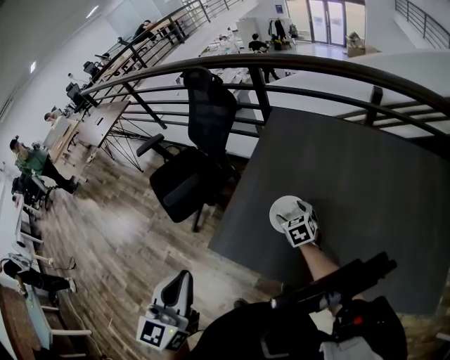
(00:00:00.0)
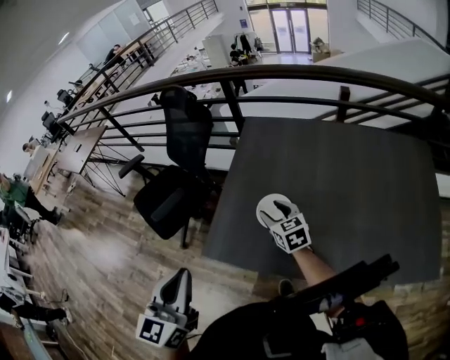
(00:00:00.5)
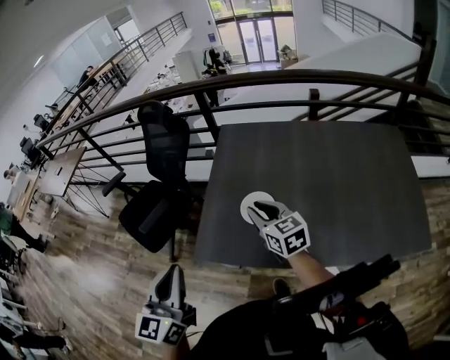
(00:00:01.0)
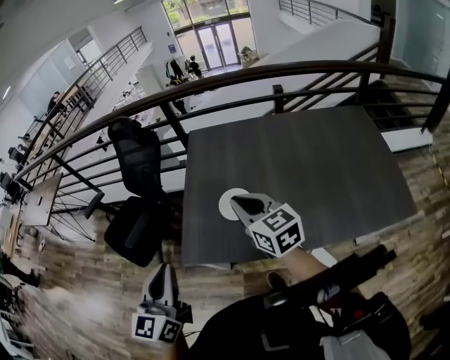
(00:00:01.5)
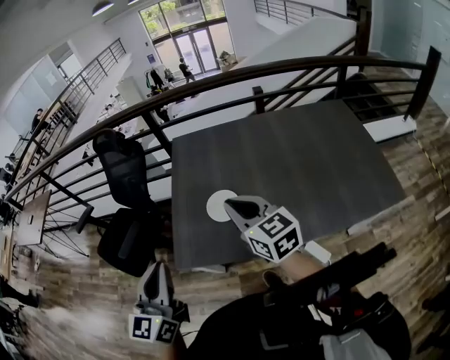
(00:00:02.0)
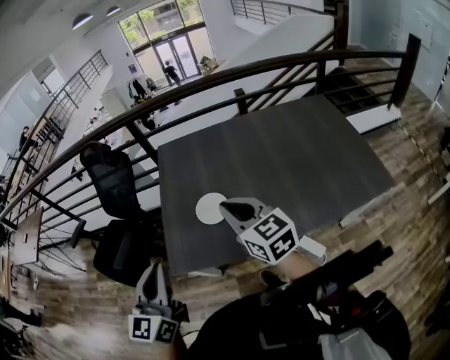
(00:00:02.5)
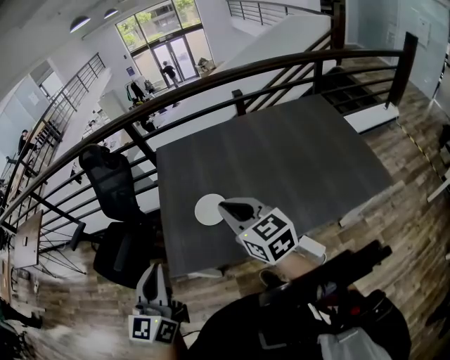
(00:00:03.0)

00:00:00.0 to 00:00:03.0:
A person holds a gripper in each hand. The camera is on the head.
00:00:00.0 to 00:00:01.5: The right gripper heads upward and backward, covering about 30 cm, points its fingers roughly 30 degrees further upward, and closes up. The left gripper ends up about 5 cm from where it was.
00:00:01.5 to 00:00:03.0: The right gripper heads backward, covering some 5 cm.

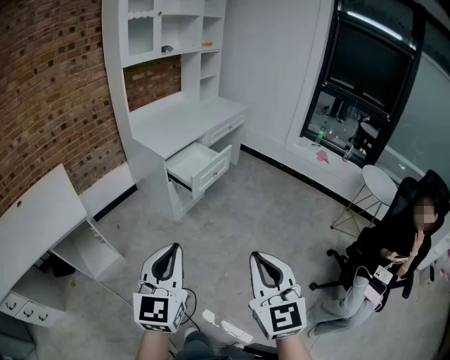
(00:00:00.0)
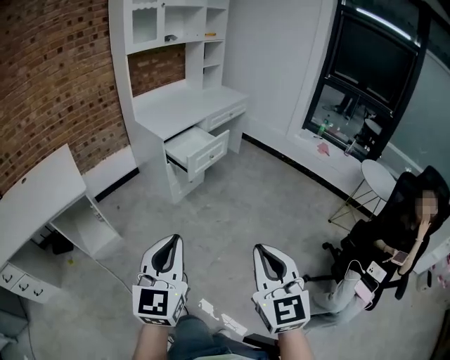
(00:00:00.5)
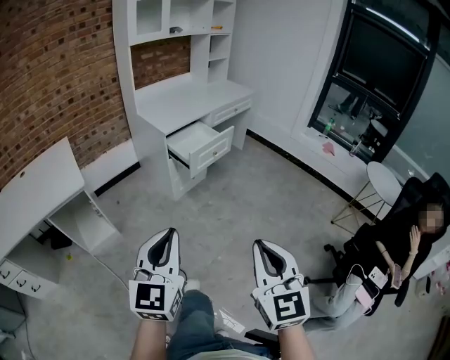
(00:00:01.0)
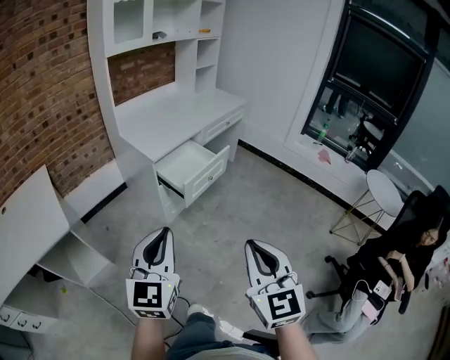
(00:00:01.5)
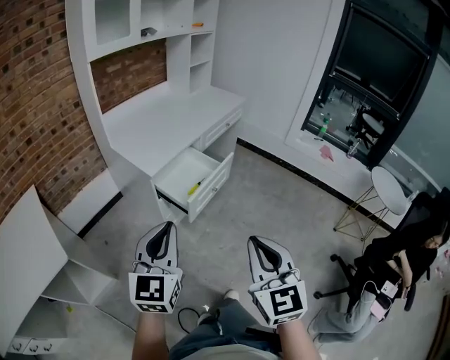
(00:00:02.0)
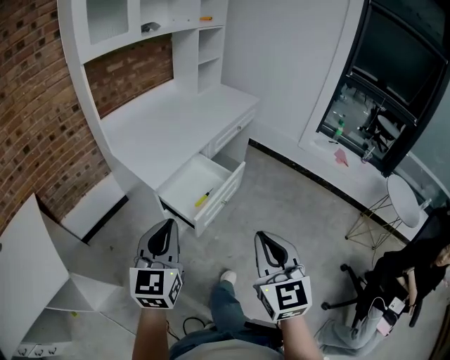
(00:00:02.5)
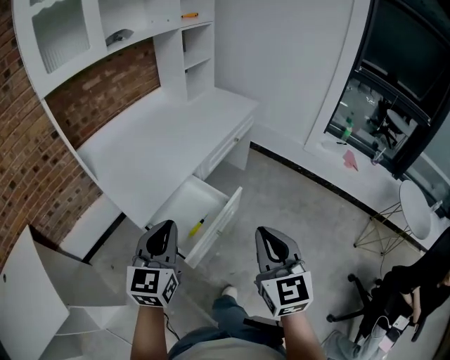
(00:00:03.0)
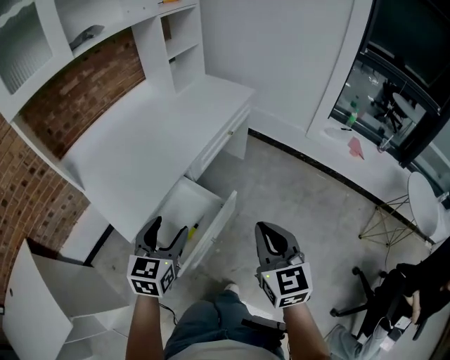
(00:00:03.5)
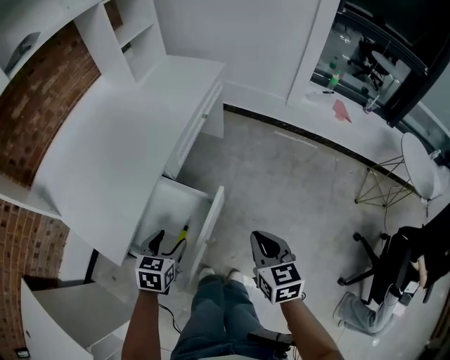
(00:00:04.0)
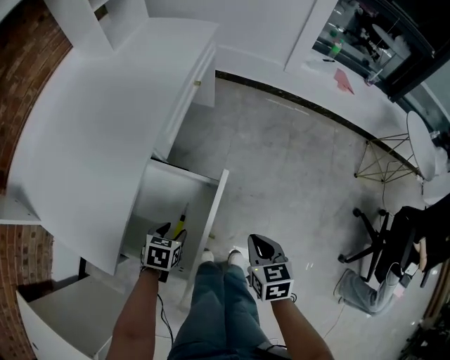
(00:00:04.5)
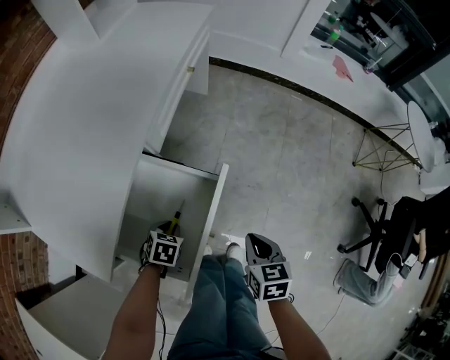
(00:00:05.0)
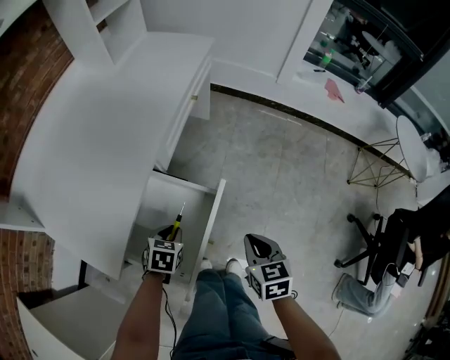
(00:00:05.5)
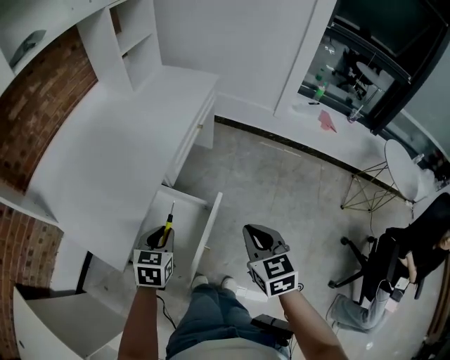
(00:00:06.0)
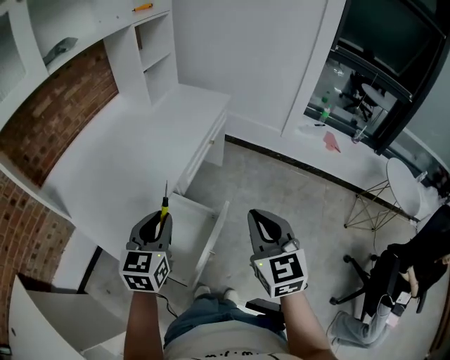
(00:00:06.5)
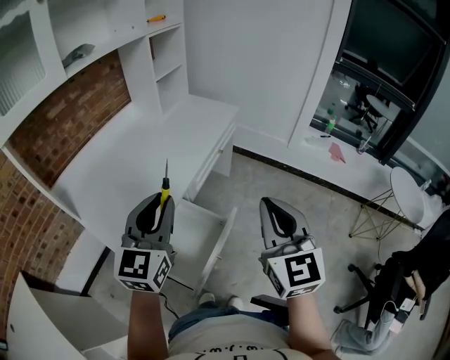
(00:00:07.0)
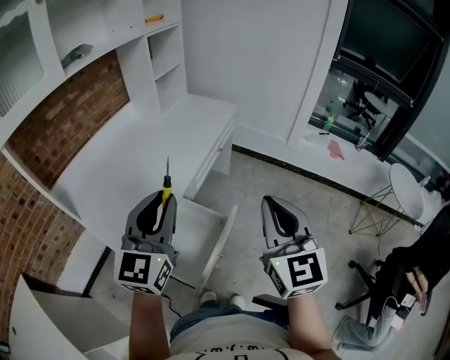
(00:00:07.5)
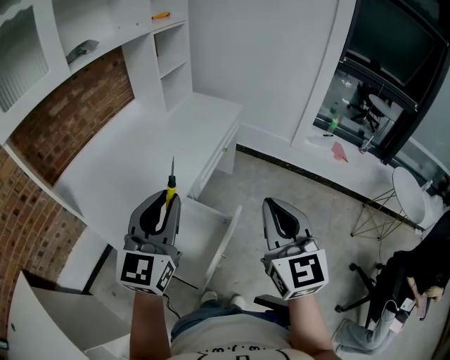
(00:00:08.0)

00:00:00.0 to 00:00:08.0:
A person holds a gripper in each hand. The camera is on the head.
00:00:00.0 to 00:00:02.0: The grippers both shift forward by some 30 cm.
00:00:02.0 to 00:00:04.0: The two grippers travel together, forward, about 50 cm. Both grippers move downward, about 25 cm. The left gripper points its fingers some 40 degrees further downward, and opens up, while the right gripper changes its angle by roughly 40 degrees.
00:00:04.0 to 00:00:06.0: The right gripper goes downward and returns, approximately 15 cm each way, while the left gripper travels downward and back again, some 20 cm each way, and closes its fingers.
00:00:06.0 to 00:00:08.0: The grippers both shift upward by about 25 cm. The left gripper tilts its fingers approximately 50 degrees upward. Meanwhile the right gripper turns by some 30 degrees.

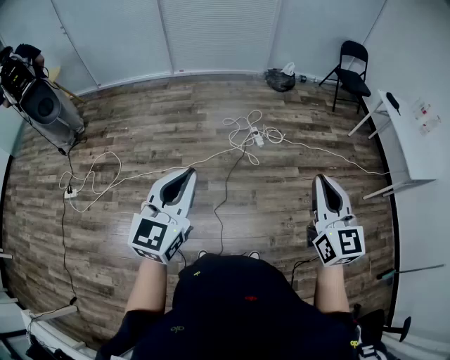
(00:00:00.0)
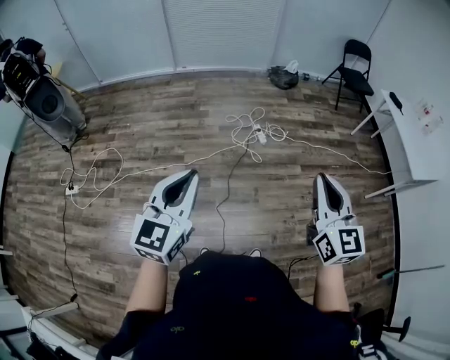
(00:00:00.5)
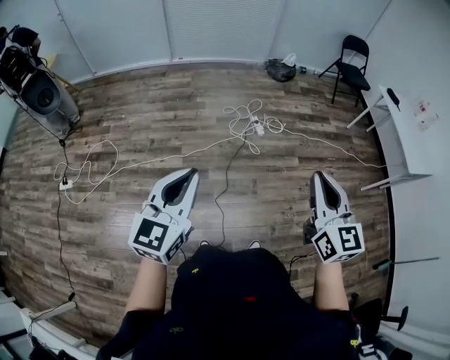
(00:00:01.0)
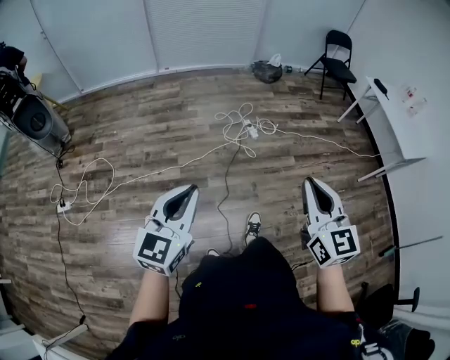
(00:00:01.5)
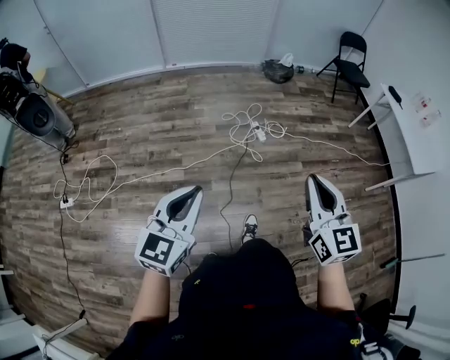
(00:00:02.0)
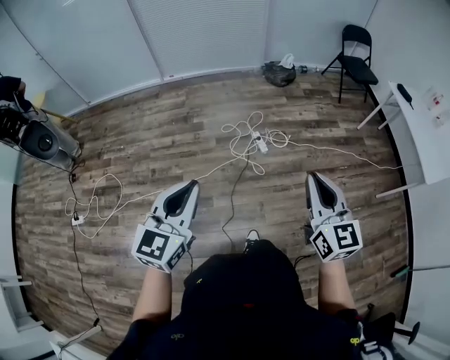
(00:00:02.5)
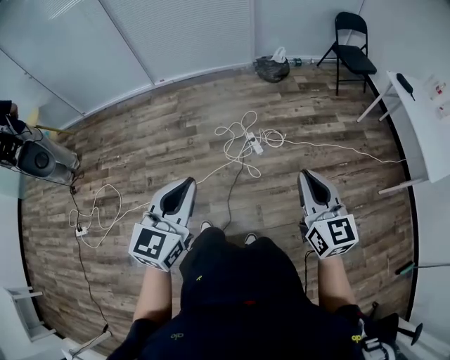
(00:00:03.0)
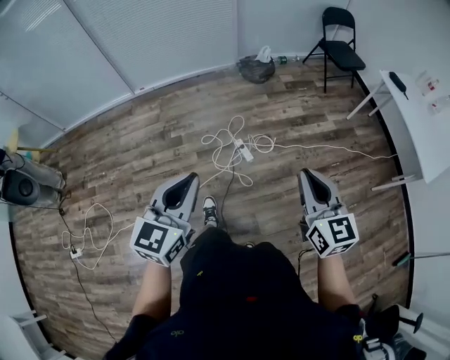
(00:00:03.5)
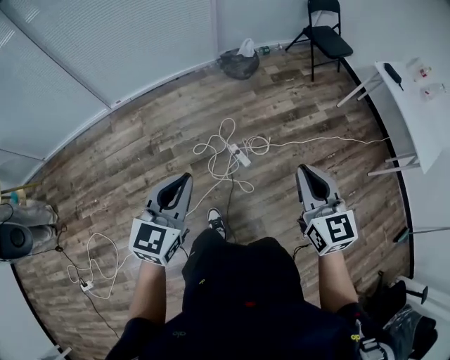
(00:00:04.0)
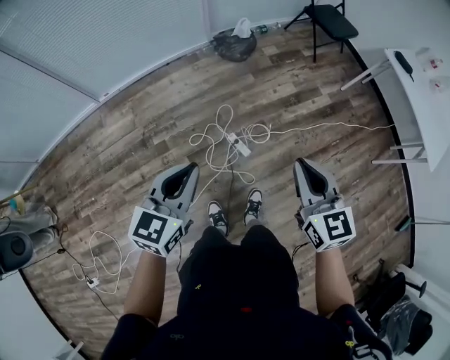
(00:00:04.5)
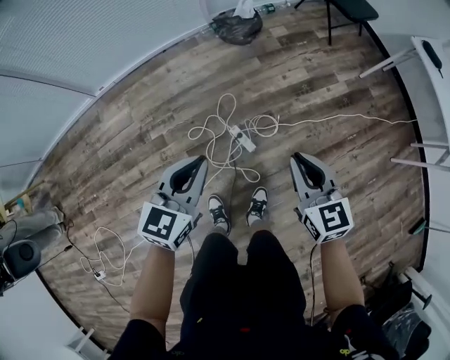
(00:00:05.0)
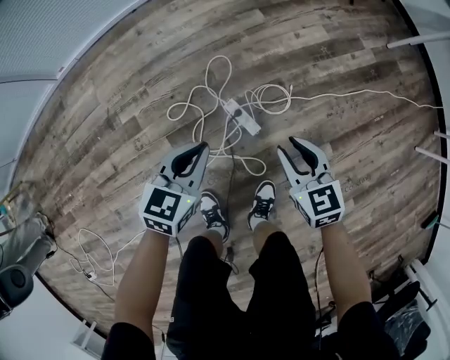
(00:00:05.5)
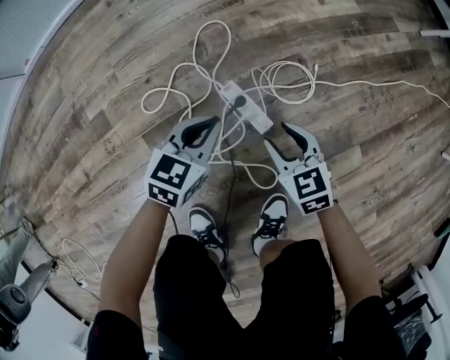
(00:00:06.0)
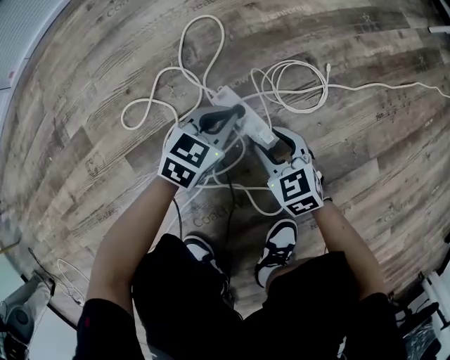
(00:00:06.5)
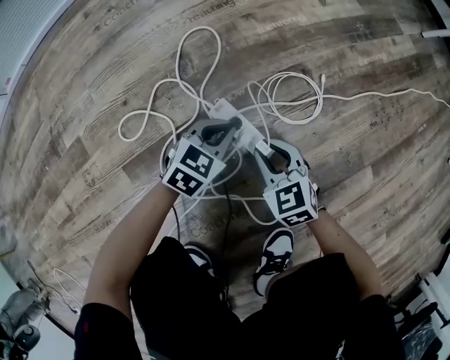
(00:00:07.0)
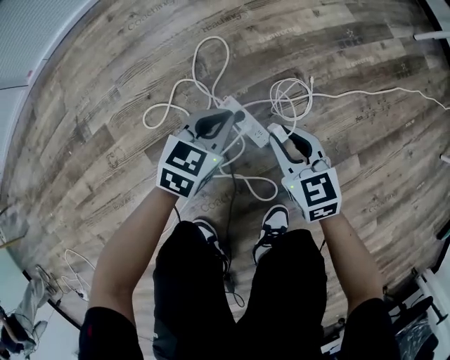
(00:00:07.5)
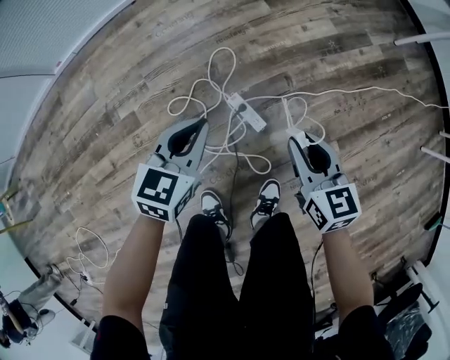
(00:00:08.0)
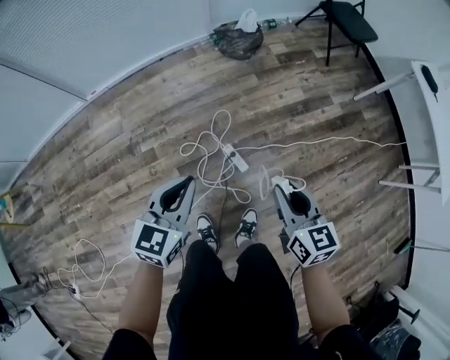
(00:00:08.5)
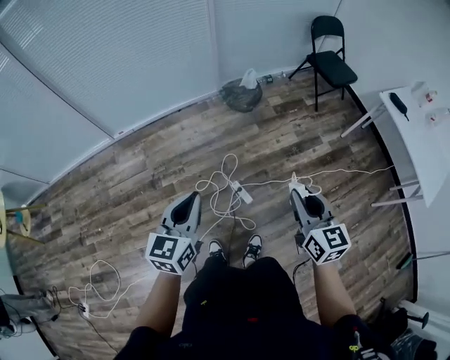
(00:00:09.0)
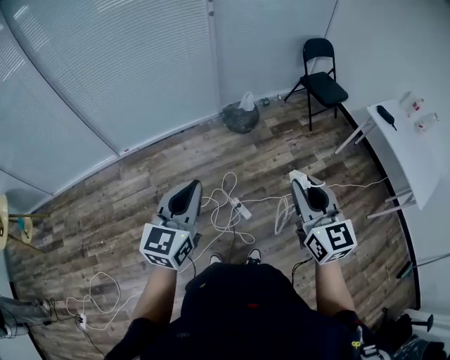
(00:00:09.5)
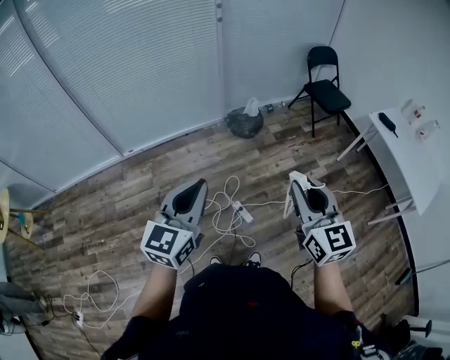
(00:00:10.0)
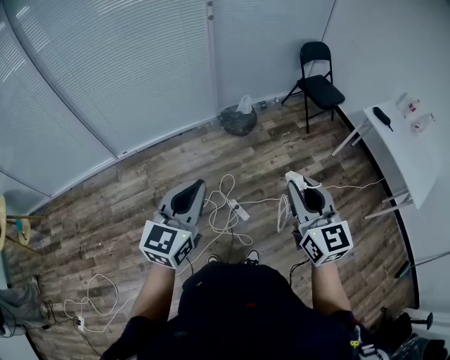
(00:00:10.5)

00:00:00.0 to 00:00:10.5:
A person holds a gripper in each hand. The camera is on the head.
00:00:00.0 to 00:00:02.0: The left gripper travels to the left and downward by roughly 10 cm. Meanwhile the right gripper travels to the left and forward by some 15 cm.
00:00:02.0 to 00:00:04.0: The pair of grippers is taken forward, roughly 60 cm.
00:00:04.0 to 00:00:06.5: The two grippers go roughly 1 m downward. The right gripper points its fingers some 30 degrees further downward, and opens its fingers; the left gripper rotates roughly 30 degrees.
00:00:06.5 to 00:00:08.5: Both grippers travel together upward, some 80 cm. The right gripper turns by roughly 30 degrees, and closes. Meanwhile the left gripper swivels roughly 30 degrees.
00:00:08.5 to 00:00:10.5: The two grippers go roughly 35 cm upward. The left gripper turns by approximately 20 degrees. Meanwhile the right gripper turns by some 30 degrees.

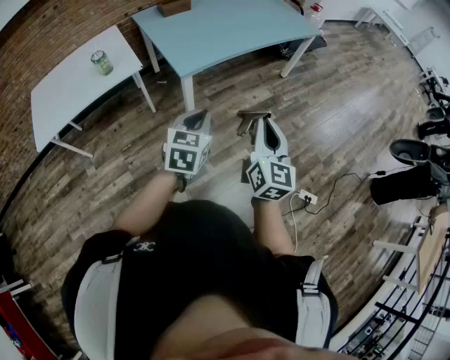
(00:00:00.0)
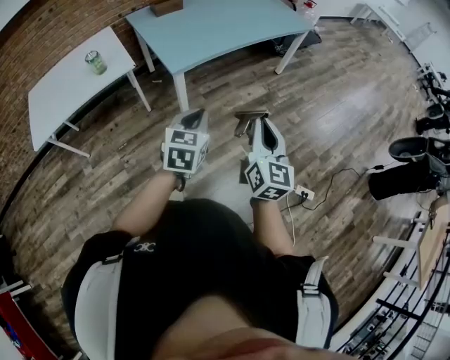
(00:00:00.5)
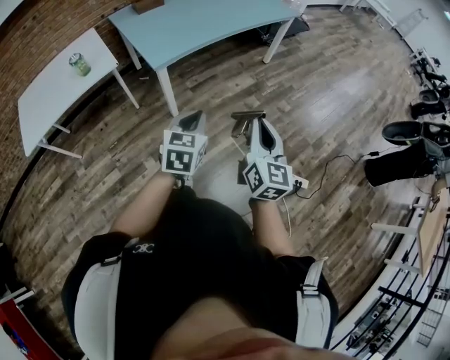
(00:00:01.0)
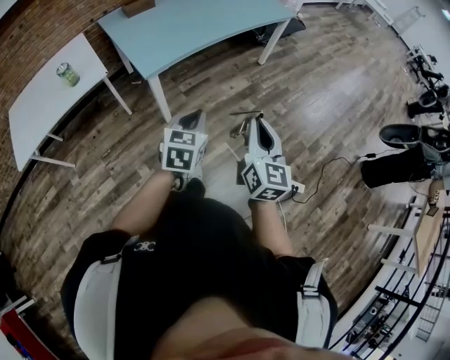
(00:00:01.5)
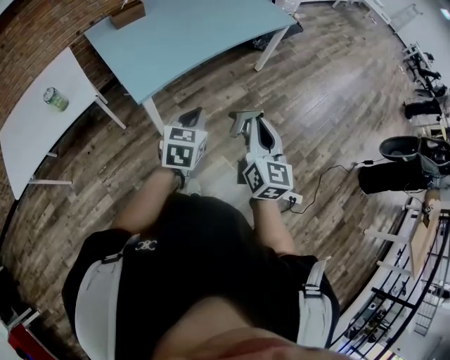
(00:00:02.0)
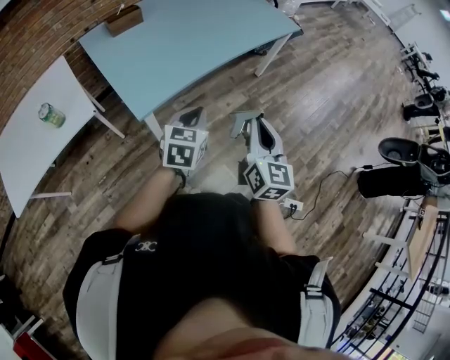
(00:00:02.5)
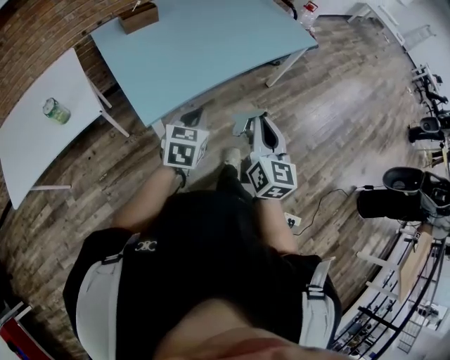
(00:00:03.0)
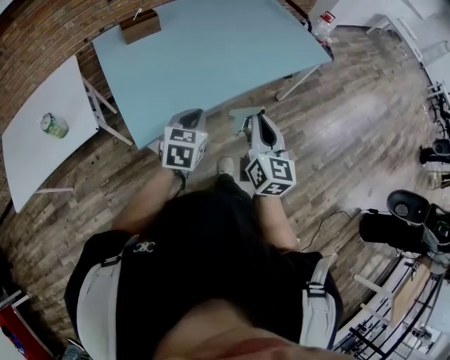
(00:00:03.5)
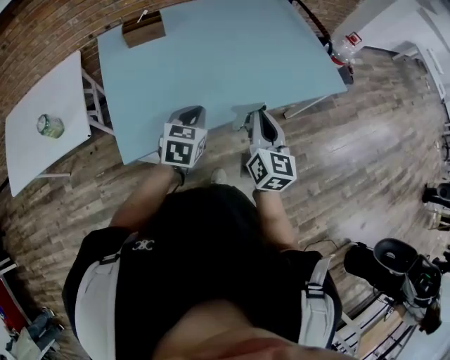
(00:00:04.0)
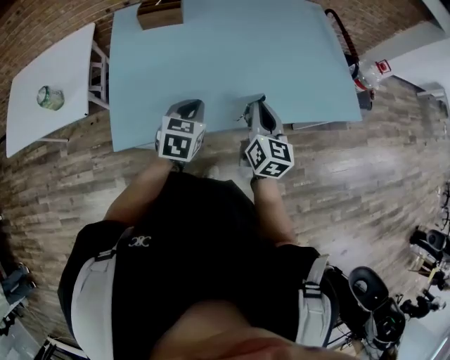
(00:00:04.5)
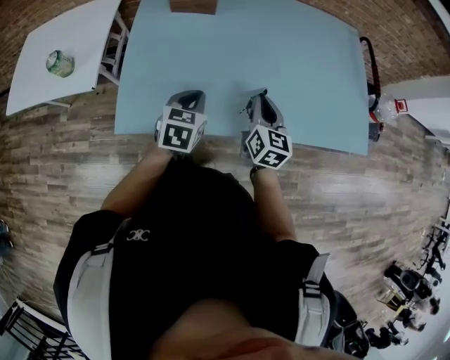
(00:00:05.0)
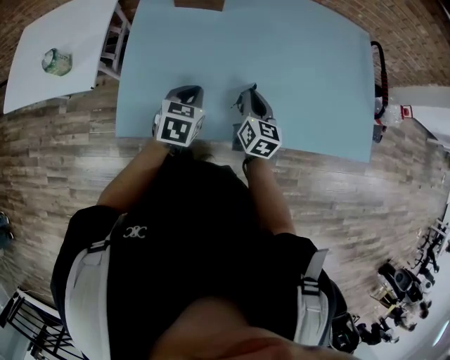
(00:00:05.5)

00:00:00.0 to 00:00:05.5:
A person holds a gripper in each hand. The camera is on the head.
00:00:00.0 to 00:00:02.0: The grippers both shift forward and to the right by about 20 cm.
00:00:02.0 to 00:00:03.5: The two grippers go about 25 cm forward.
00:00:03.5 to 00:00:05.5: The right gripper moves some 35 cm, and turns by roughly 40 degrees; the left gripper moves about 20 cm, and rotates about 30 degrees.
